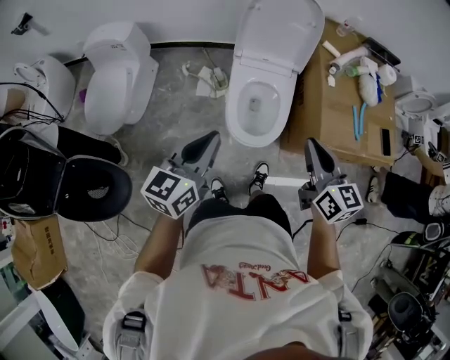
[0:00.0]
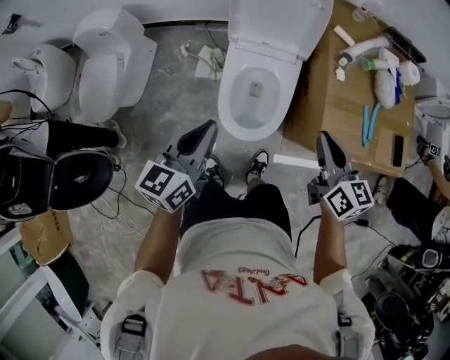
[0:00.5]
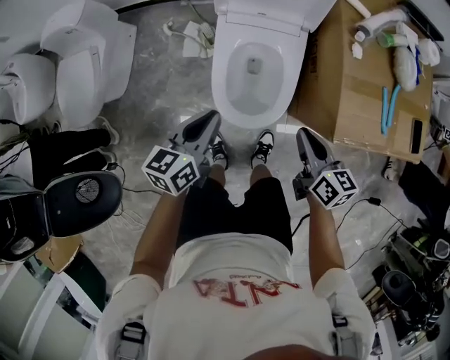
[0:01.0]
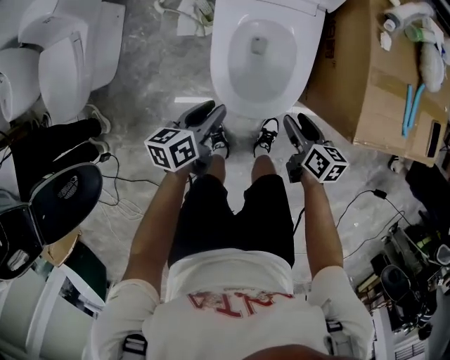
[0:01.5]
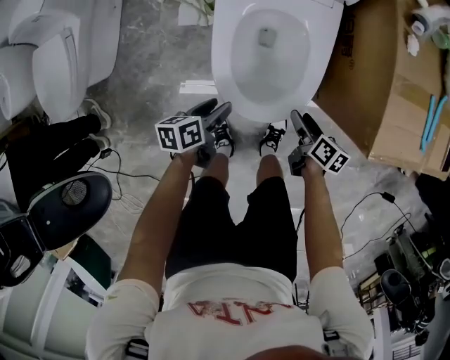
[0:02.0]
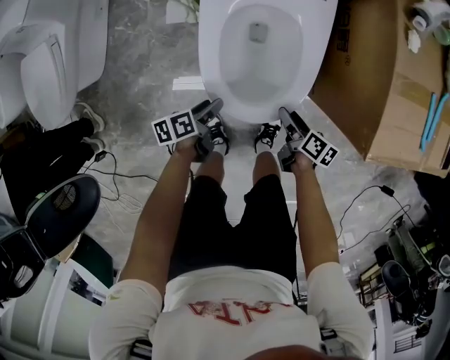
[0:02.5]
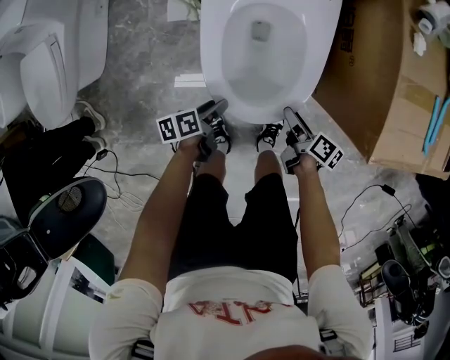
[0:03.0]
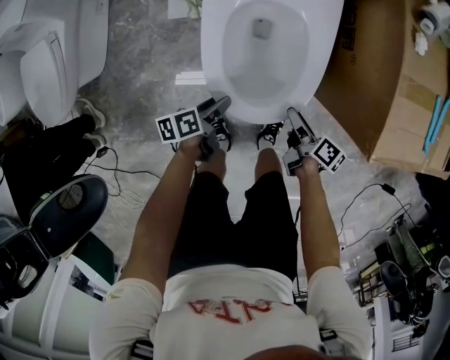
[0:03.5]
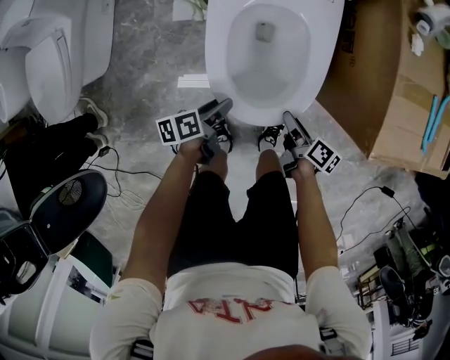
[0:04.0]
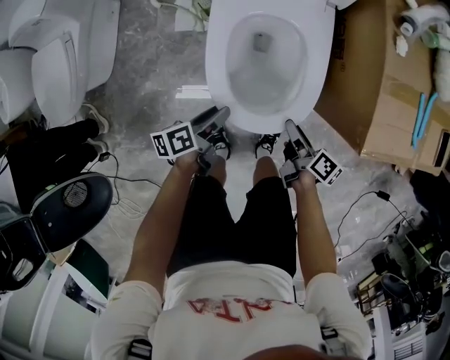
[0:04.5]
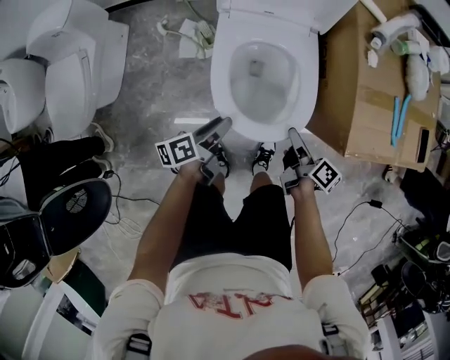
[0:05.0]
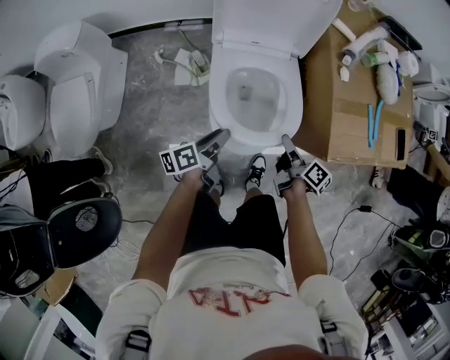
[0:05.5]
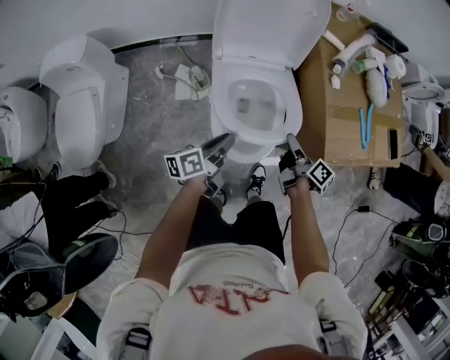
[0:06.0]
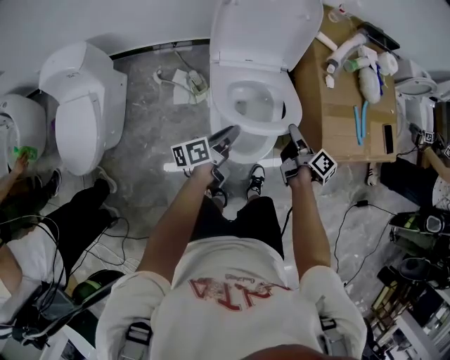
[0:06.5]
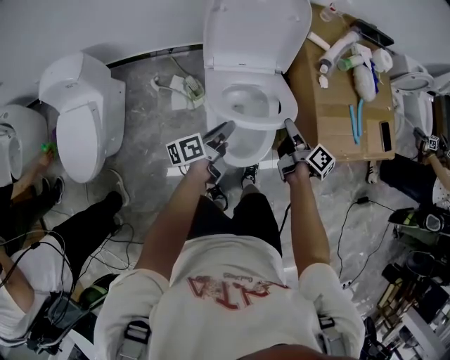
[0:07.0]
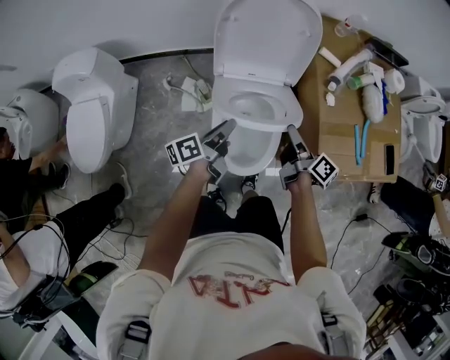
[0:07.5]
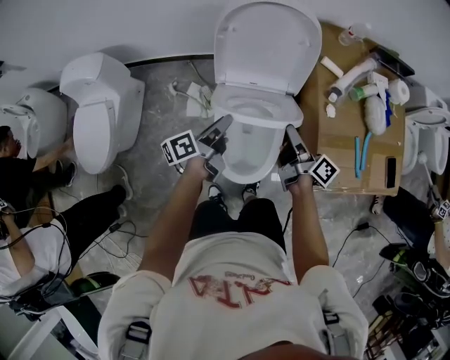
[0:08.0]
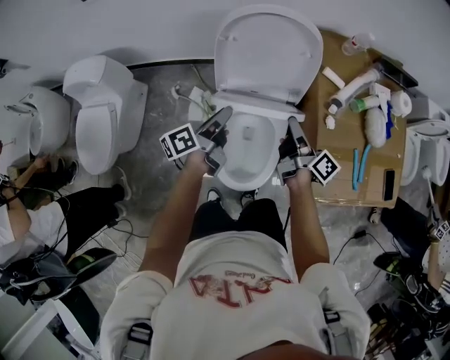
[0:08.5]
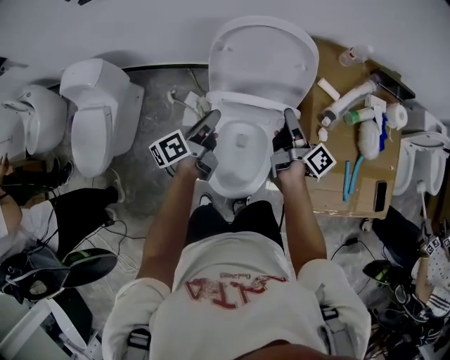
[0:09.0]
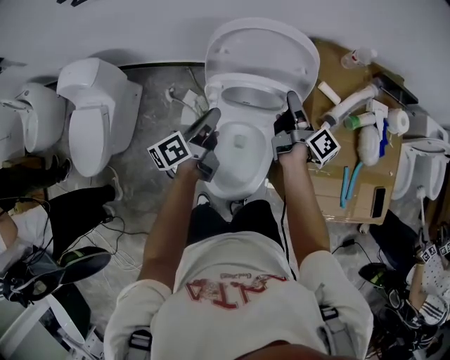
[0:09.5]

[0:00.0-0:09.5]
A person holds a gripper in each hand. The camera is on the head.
0:00.0 to 0:02.0: Both grippers travel together downward, approximately 50 cm. The left gripper points its fingers some 30 degrees further downward, and opens up. The right gripper twists roughly 40 degrees clockwise, seen from behind, and opens up.
0:02.0 to 0:04.0: The right gripper closes its fingers.
0:04.0 to 0:05.5: The grippers both shift upward by some 20 cm. The left gripper rotates approximately 20 degrees.
0:05.5 to 0:07.5: The left gripper moves forward and upward, approximately 15 cm, and closes up; the right gripper goes approximately 15 cm upward and forward.
0:07.5 to 0:09.5: The right gripper heads forward, covering about 25 cm, while the left gripper moves forward and upward, approximately 15 cm.

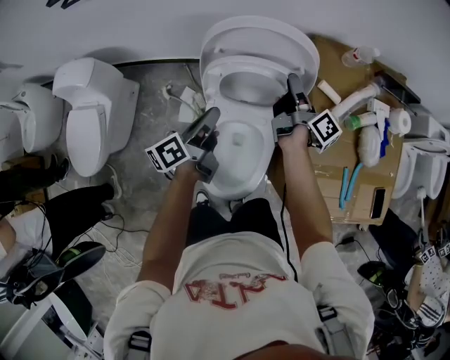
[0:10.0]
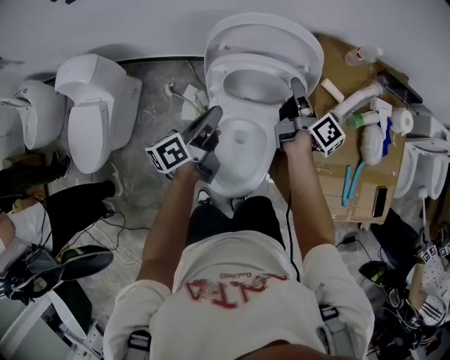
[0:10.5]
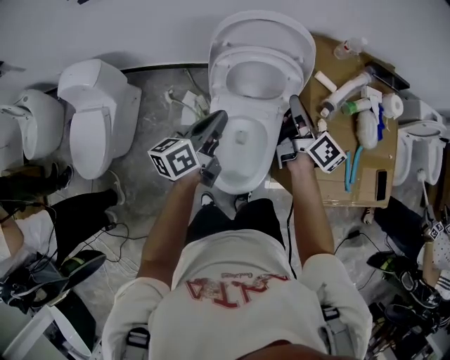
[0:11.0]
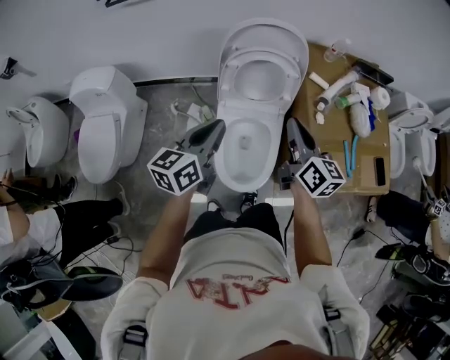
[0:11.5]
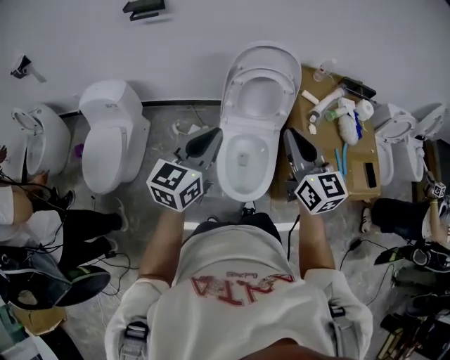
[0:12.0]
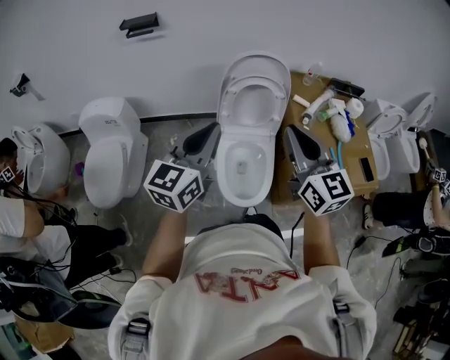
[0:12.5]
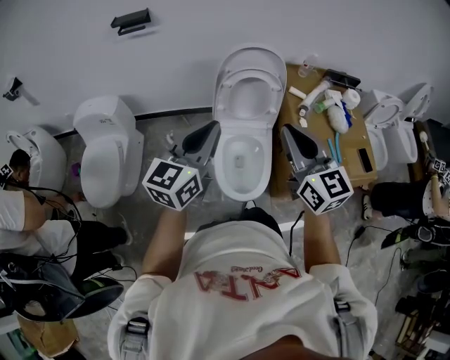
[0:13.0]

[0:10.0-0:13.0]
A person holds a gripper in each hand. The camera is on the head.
0:10.0 to 0:11.5: The two grippers go about 25 cm backward and upward. The right gripper twists approximately 50 degrees counterclockwise, seen from behind, and closes up; the left gripper swivels some 40 degrees.
0:11.5 to 0:13.0: The right gripper moves upward, backward and to the left, some 25 cm, and rotates approximately 30 degrees. The left gripper moves upward and backward, roughly 15 cm, and turns by some 20 degrees.

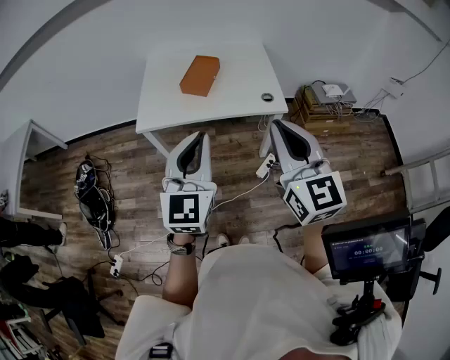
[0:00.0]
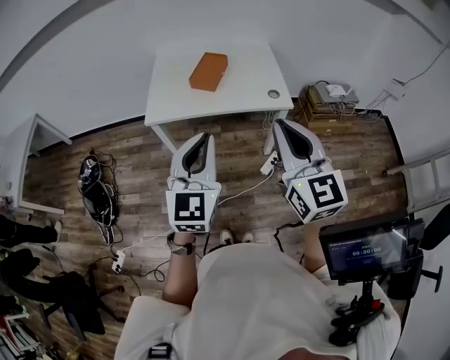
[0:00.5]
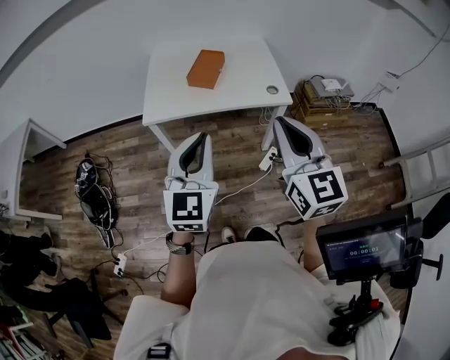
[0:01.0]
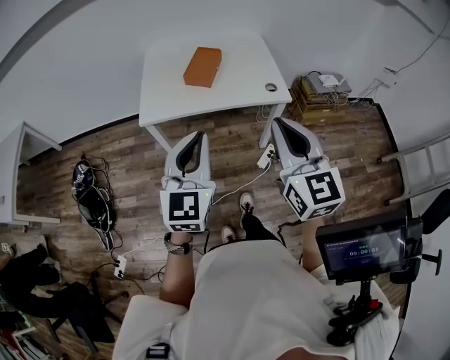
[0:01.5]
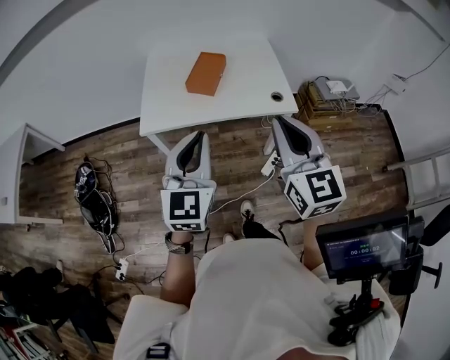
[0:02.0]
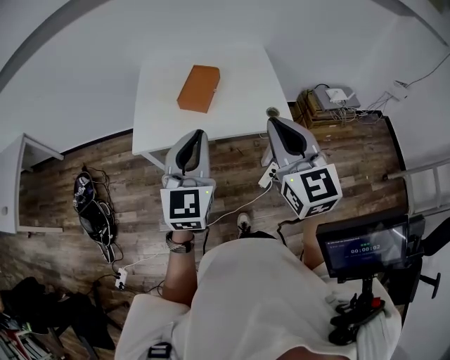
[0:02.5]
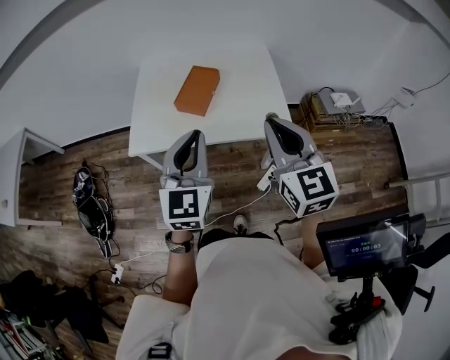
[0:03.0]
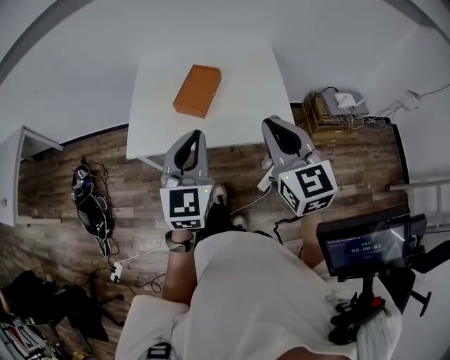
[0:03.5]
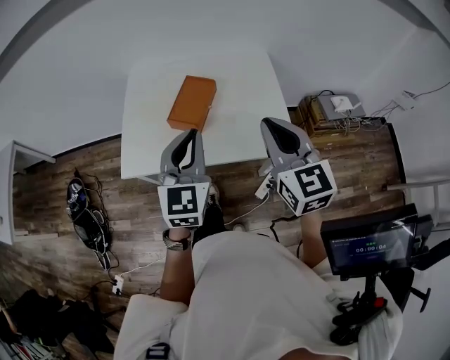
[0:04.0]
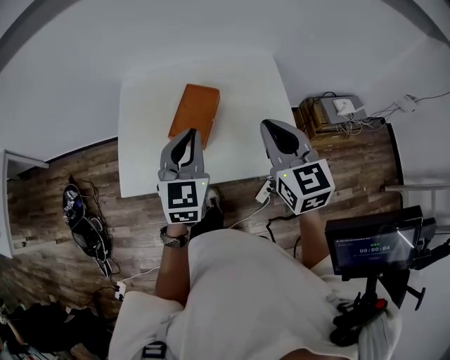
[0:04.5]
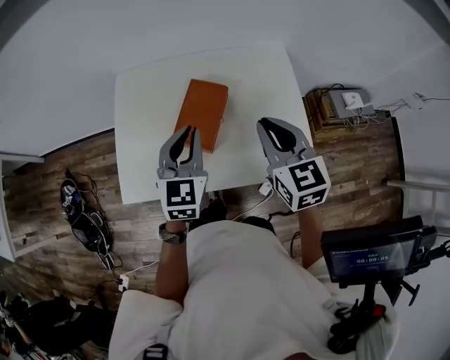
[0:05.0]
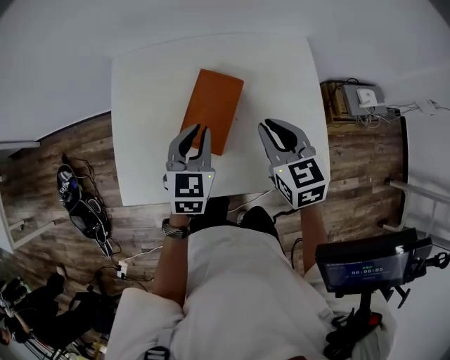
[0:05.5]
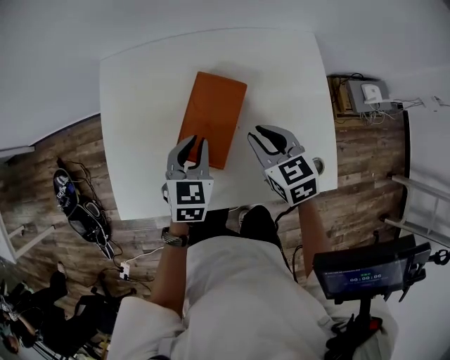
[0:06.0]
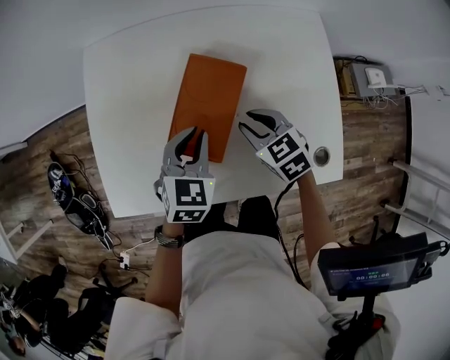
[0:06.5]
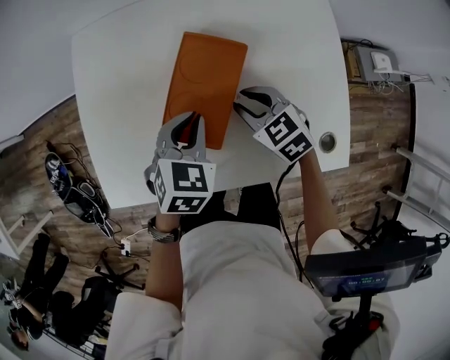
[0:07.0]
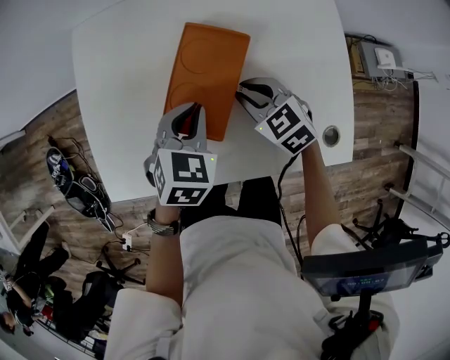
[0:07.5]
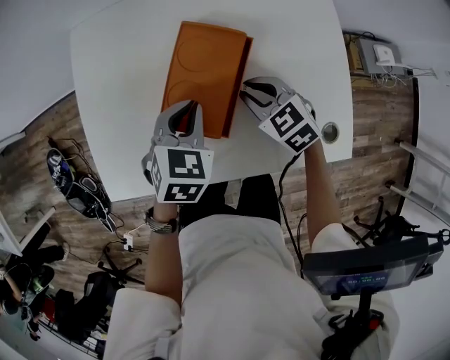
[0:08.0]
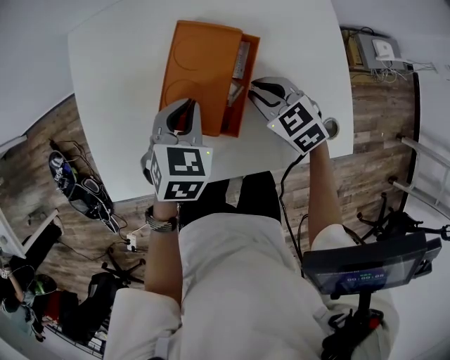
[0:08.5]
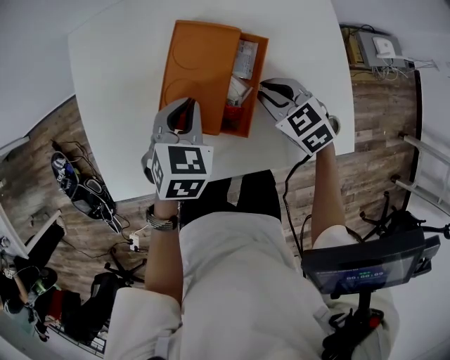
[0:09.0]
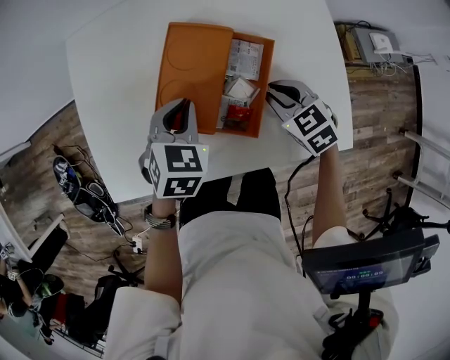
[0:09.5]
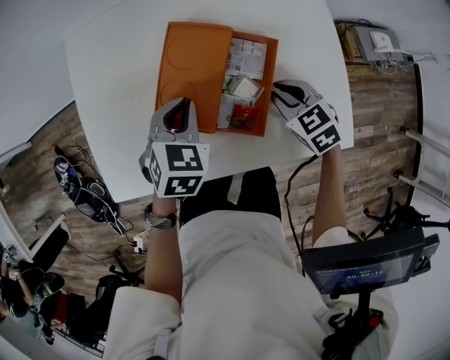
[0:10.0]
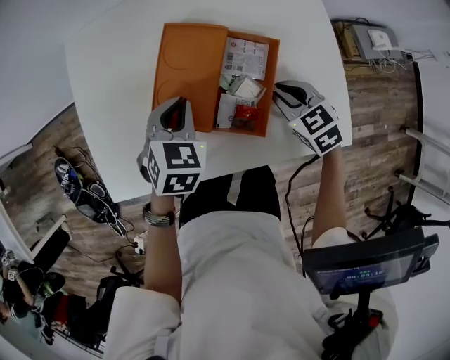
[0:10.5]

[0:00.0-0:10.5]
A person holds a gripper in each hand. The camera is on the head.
0:00.0 to 0:02.0: The grippers both shift forward by approximately 5 cm.
0:02.0 to 0:04.0: Both grippers move forward, about 25 cm.
0:04.0 to 0:06.5: The grippers both shift downward and forward by some 40 cm. The right gripper tips its fingers downward by approximately 40 degrees, and opens up; the left gripper tips its fingers downward by some 30 degrees.
0:06.5 to 0:08.5: The grippers move only a little.
0:08.5 to 0:10.5: The right gripper travels to the right by approximately 5 cm.

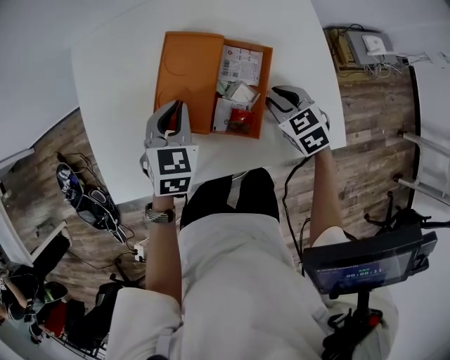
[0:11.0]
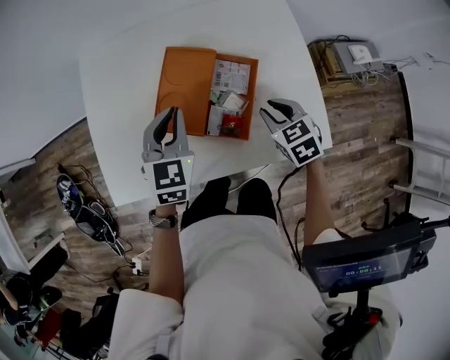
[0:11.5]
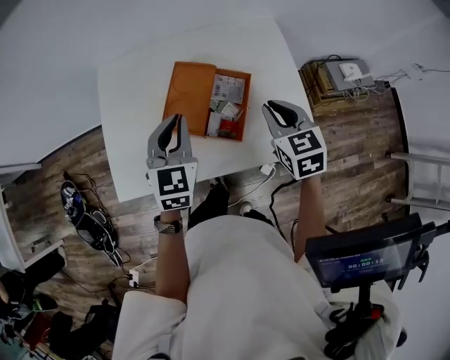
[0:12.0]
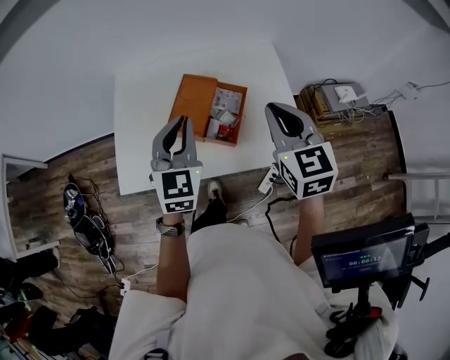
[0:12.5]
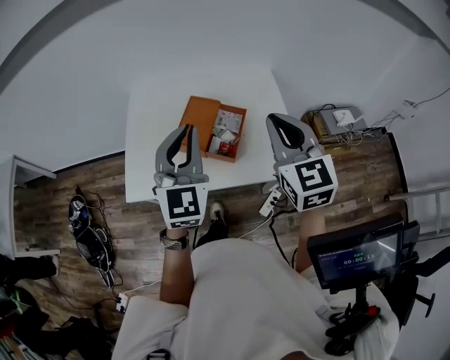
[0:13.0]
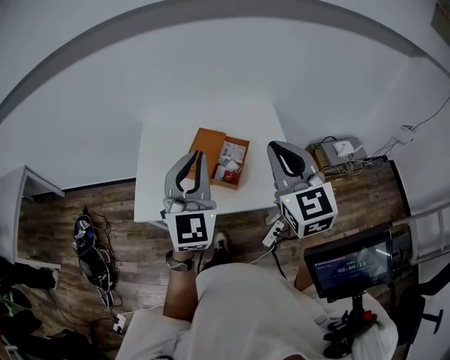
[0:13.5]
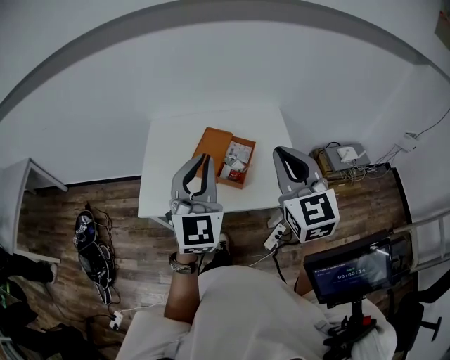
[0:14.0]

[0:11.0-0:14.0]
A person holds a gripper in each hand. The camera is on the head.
0:11.0 to 0:12.5: The right gripper moves upward, about 35 cm, points its fingers approximately 30 degrees further upward, and closes its fingers; the left gripper goes approximately 25 cm upward and backward, and swivels about 30 degrees.
0:12.5 to 0:14.0: The grippers both shift upward and backward by approximately 20 cm.
